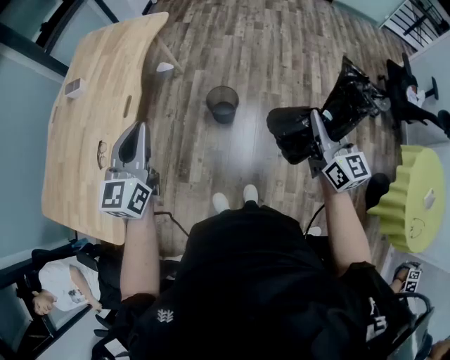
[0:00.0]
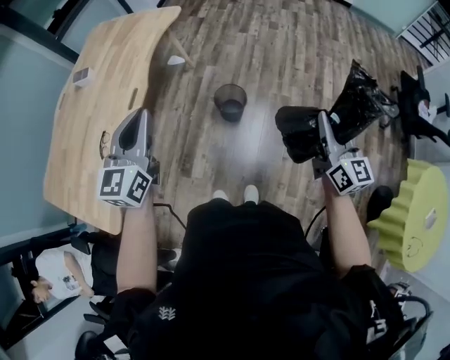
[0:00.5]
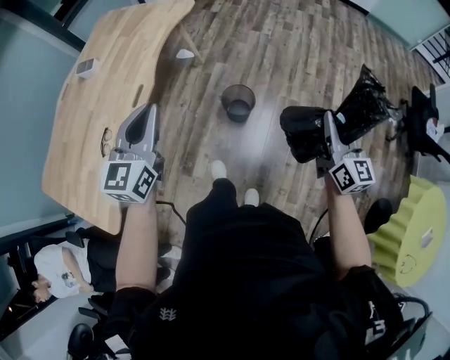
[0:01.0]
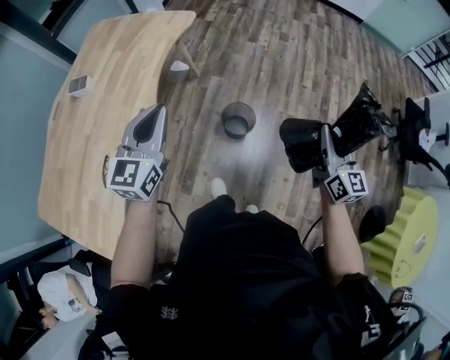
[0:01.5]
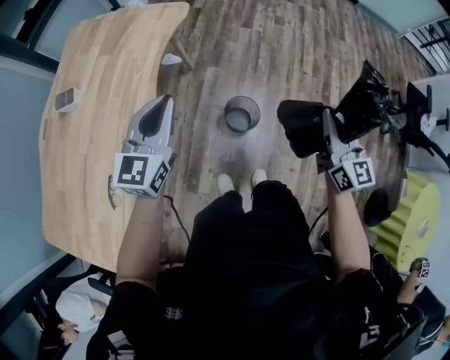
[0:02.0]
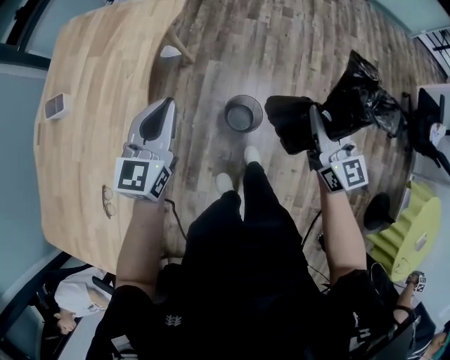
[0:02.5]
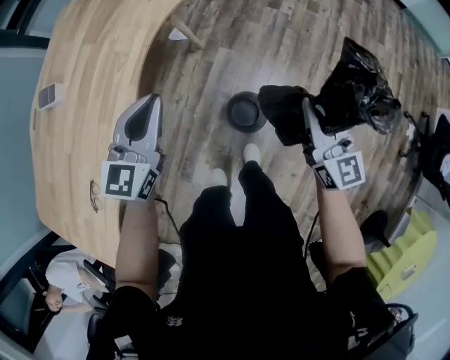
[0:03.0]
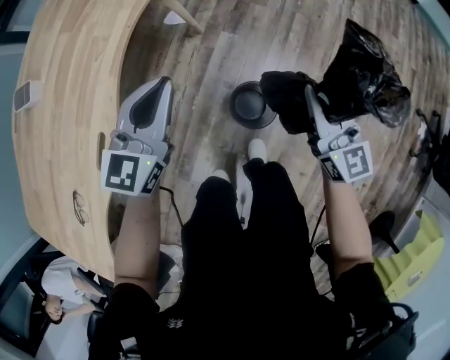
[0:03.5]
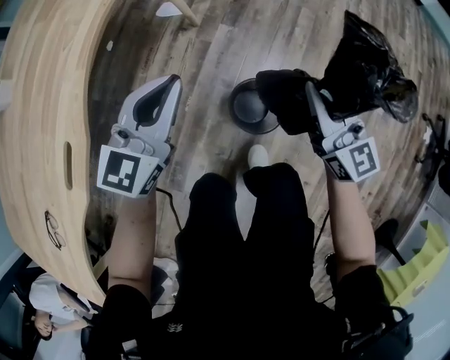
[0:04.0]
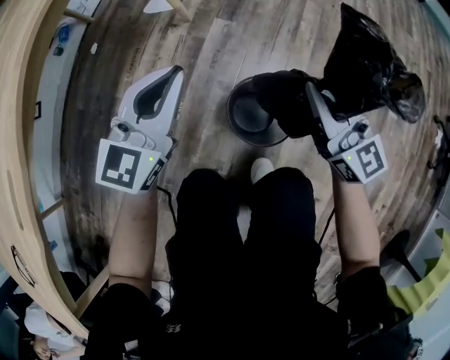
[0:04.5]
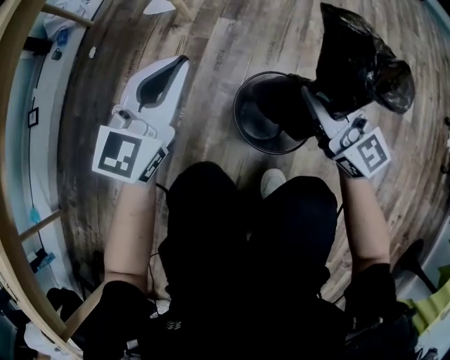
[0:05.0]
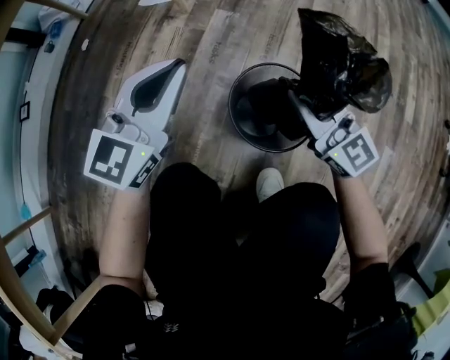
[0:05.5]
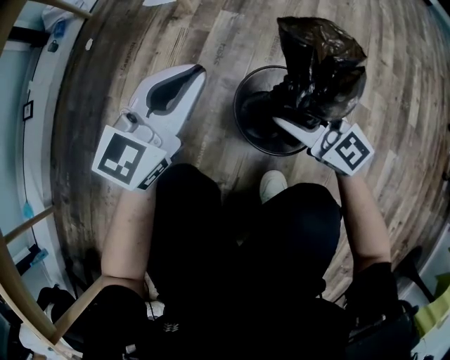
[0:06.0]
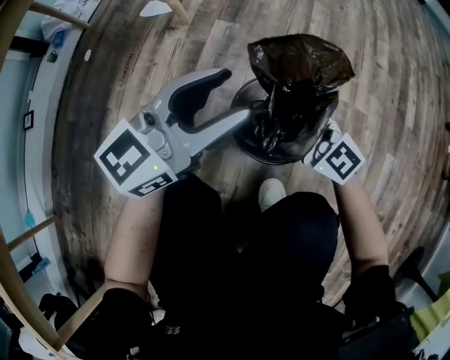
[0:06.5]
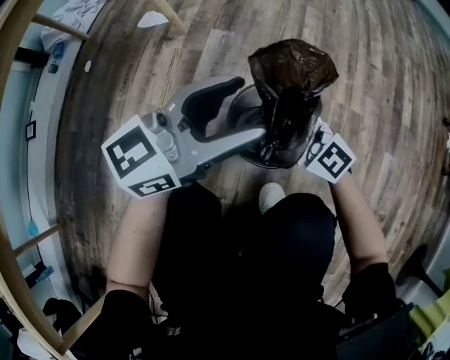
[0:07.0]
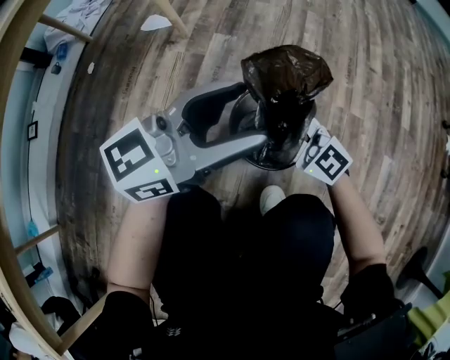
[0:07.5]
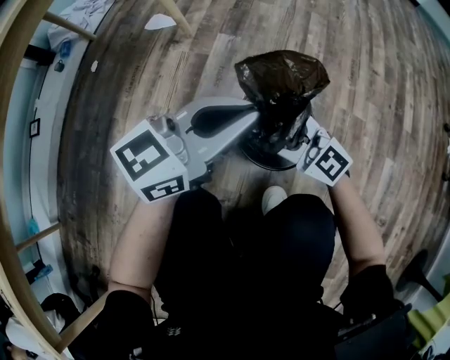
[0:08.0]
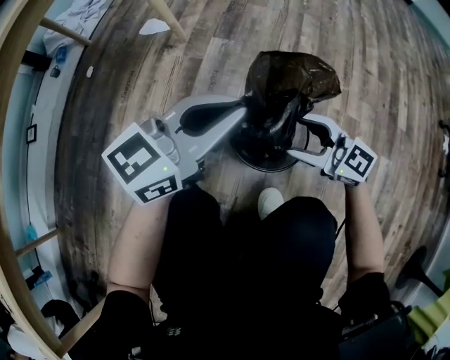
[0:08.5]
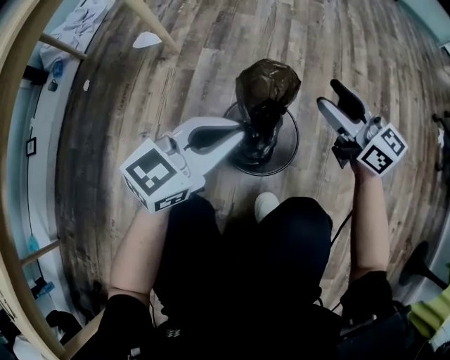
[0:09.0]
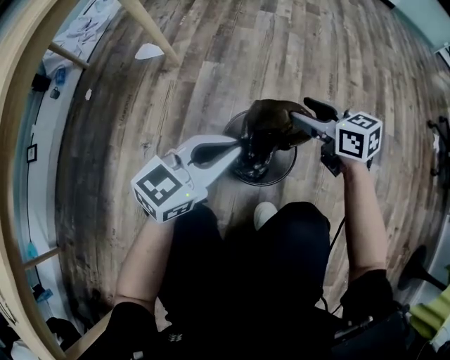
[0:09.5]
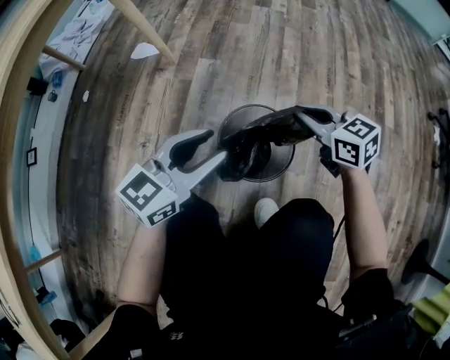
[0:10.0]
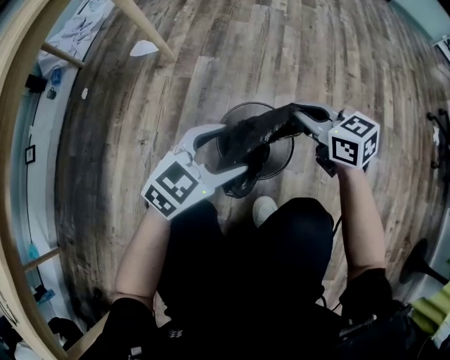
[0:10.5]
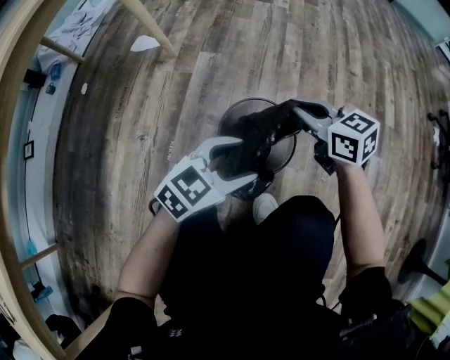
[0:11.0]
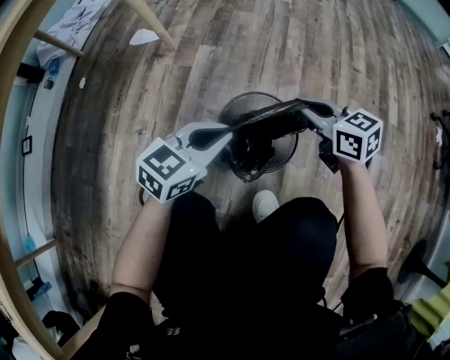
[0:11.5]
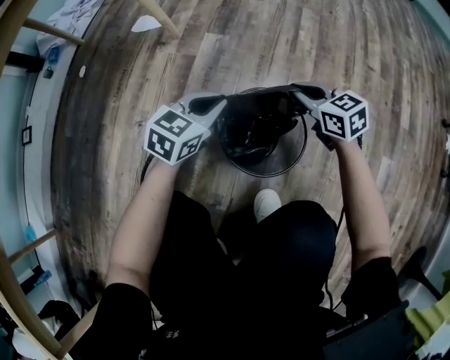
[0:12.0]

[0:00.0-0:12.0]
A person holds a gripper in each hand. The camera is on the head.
0:00.0 to 0:02.0: The left gripper shifts roughly 30 cm forward; the right gripper heads forward and to the left, covering approximately 30 cm.
0:02.0 to 0:04.0: The left gripper goes some 35 cm downward. Meanwhile the right gripper travels downward and forward by some 40 cm, and changes its angle by approximately 20 degrees.
0:04.0 to 0:06.0: Both grippers move downward, some 35 cm. The right gripper turns by about 30 degrees, and opens its fingers.
0:06.0 to 0:08.0: The left gripper shifts by about 10 cm, turns by approximately 30 degrees, and opens, then closes once more.
0:08.0 to 0:10.0: The left gripper opens. Meanwhile the right gripper is displaced to the right and forward by approximately 15 cm, changes its angle by roughly 40 degrees, and closes its fingers.
0:10.0 to 0:12.0: Both grippers move downward and forward, some 15 cm. The left gripper turns by roughly 20 degrees, and closes.

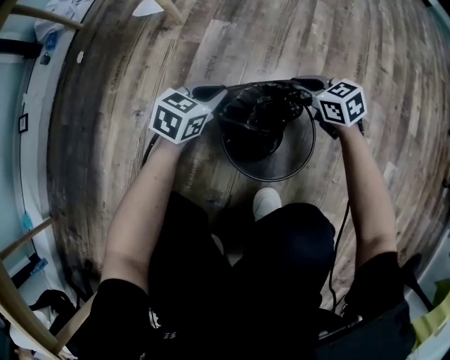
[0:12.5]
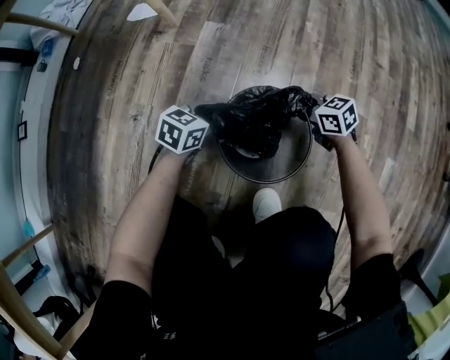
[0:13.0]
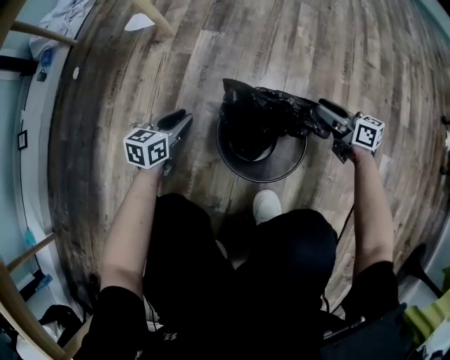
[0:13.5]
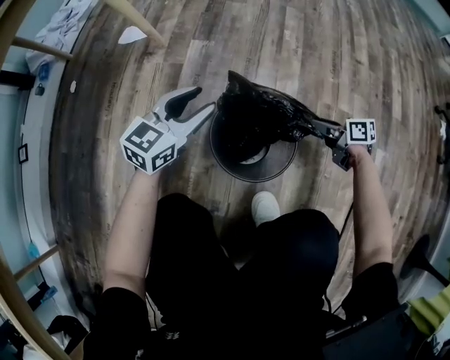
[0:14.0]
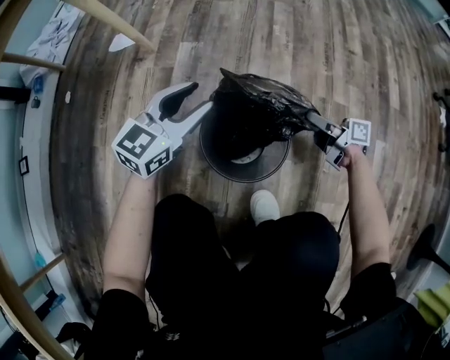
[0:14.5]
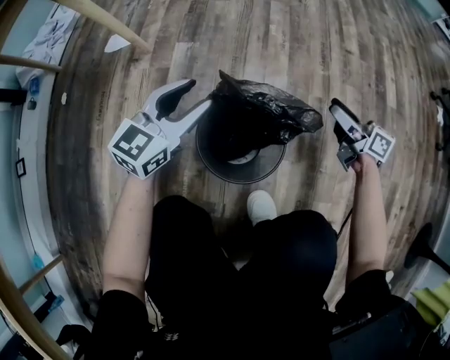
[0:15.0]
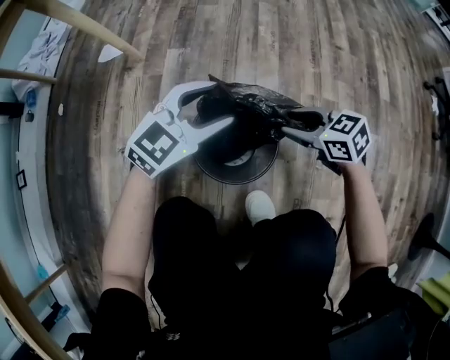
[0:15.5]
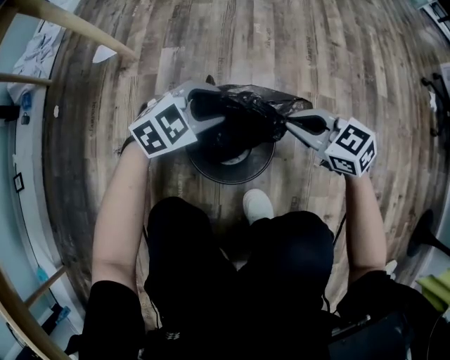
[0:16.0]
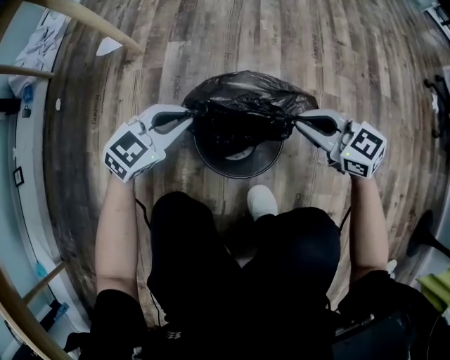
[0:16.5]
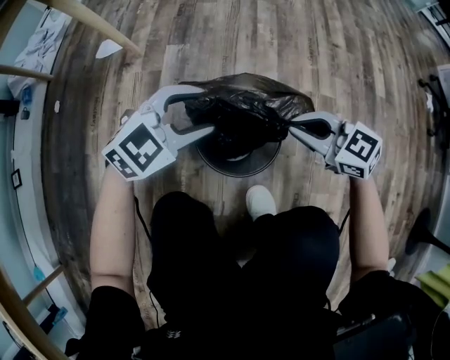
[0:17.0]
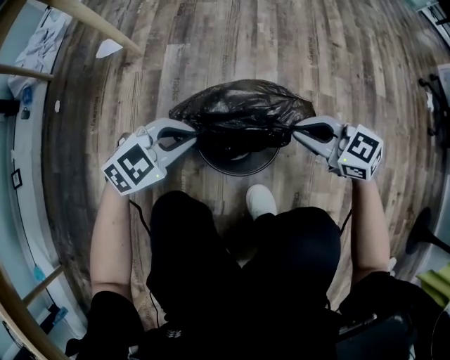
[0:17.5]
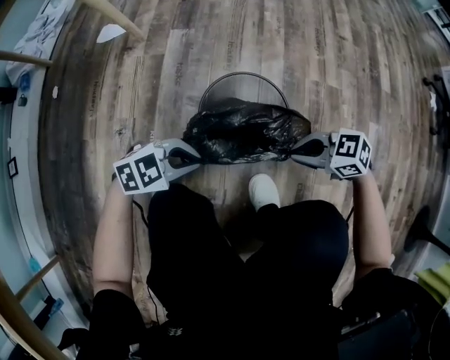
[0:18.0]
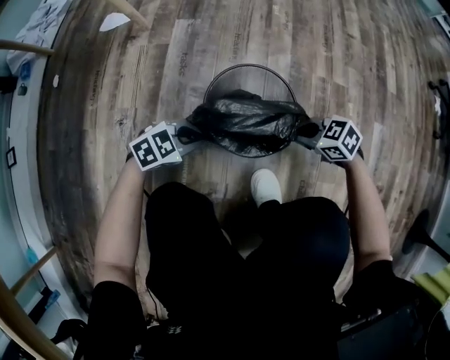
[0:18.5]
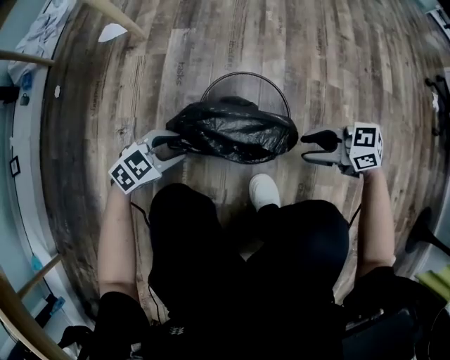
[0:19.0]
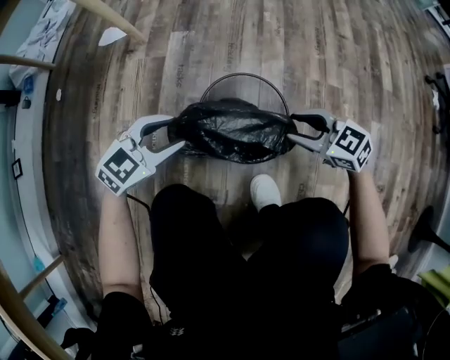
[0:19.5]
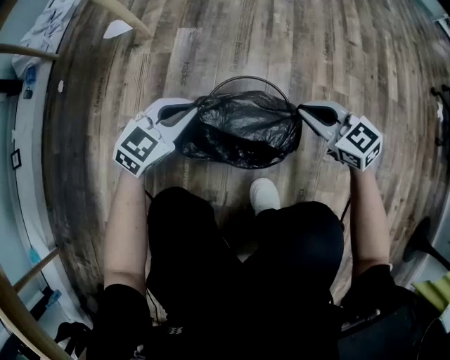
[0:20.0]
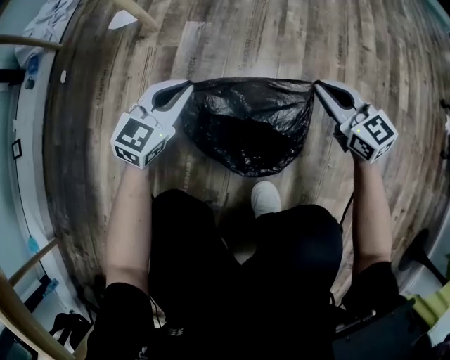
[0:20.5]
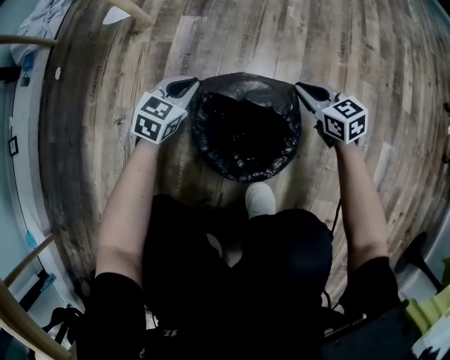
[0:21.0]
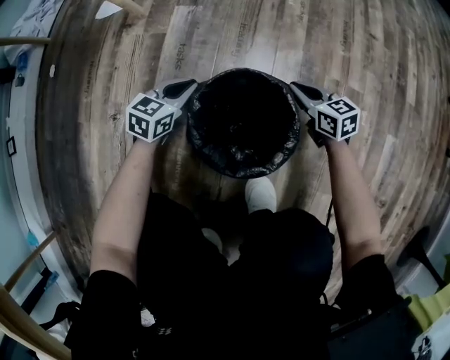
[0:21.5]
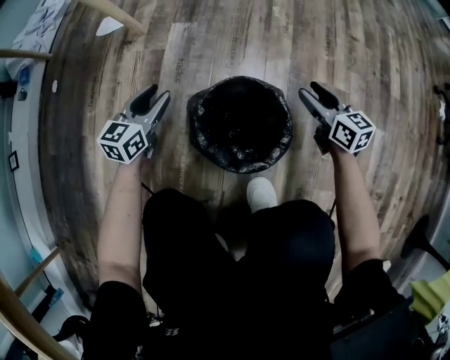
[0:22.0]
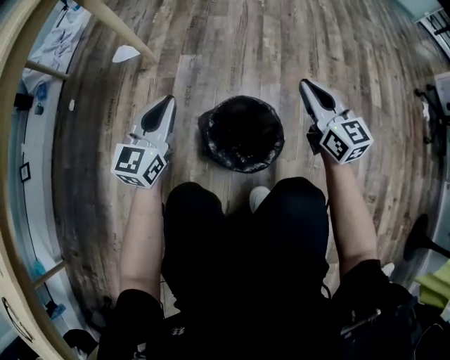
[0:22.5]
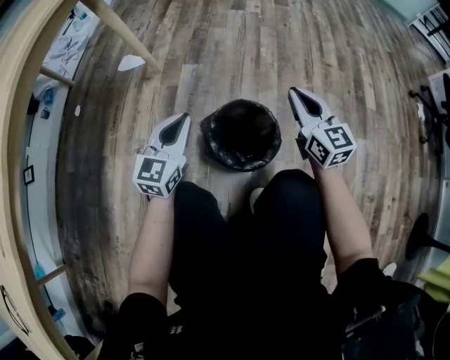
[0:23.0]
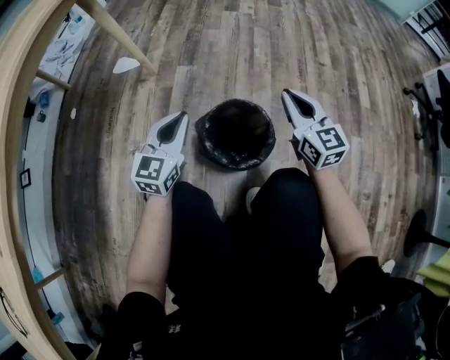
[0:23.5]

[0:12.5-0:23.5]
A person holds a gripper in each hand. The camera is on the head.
0:12.5 to 0:14.5: The right gripper is displaced to the right and backward by some 20 cm, rolls clockwise, seen from behind, by about 50 degrees, and opens up. Meanwhile the left gripper moves upward, roughly 15 cm, turns by about 30 degrees, and opens up.
0:14.5 to 0:16.0: The left gripper moves about 10 cm, and swivels about 40 degrees; the right gripper heads upward, covering roughly 10 cm, twists some 60 degrees counterclockwise, seen from behind, and closes.
0:16.0 to 0:18.0: The left gripper changes place by about 20 cm, and closes. Meanwhile the right gripper moves about 15 cm, and changes its angle by some 30 degrees.
0:18.0 to 0:20.0: The right gripper travels downward and back again, approximately 10 cm each way, rotates roughly 30 degrees, and opens, then closes once more; the left gripper moves roughly 5 cm downward and comes back, rotates some 40 degrees, and opens, then closes once more.
0:20.0 to 0:21.5: Both grippers travel together downward and forward, approximately 15 cm. The left gripper swivels about 30 degrees. Meanwhile the right gripper turns by about 20 degrees.
0:21.5 to 0:23.5: The two grippers go roughly 30 cm upward. The left gripper changes its angle by some 30 degrees, and opens and closes again. Meanwhile the right gripper changes its angle by roughly 40 degrees, and opens, then closes once more.

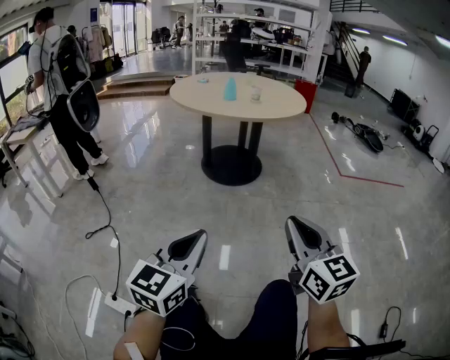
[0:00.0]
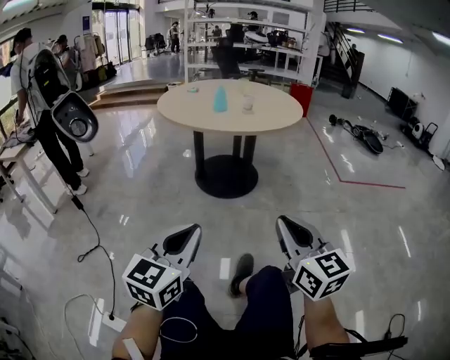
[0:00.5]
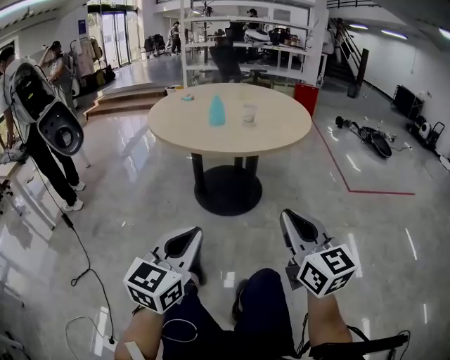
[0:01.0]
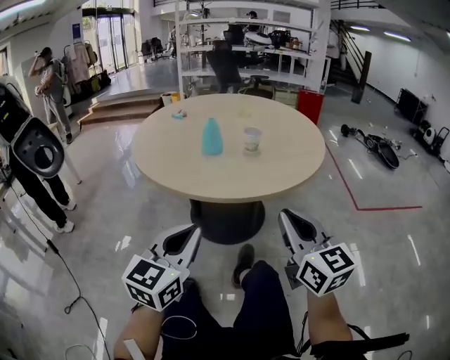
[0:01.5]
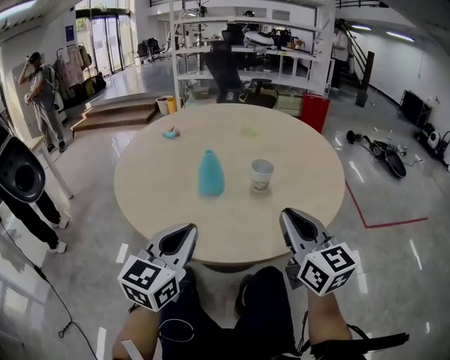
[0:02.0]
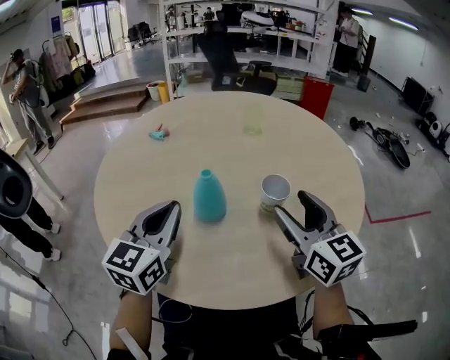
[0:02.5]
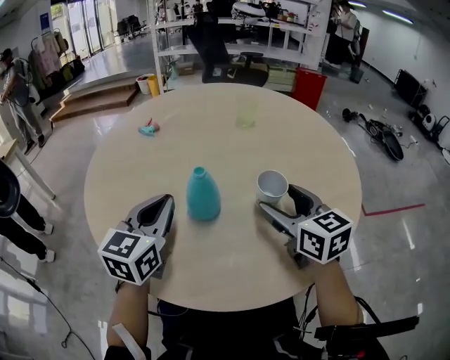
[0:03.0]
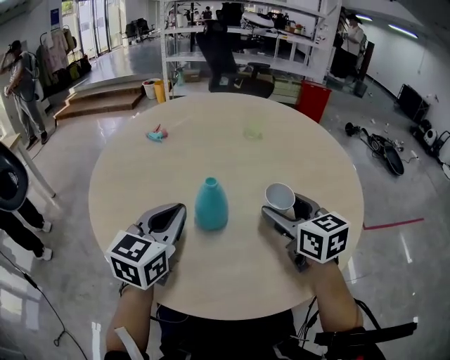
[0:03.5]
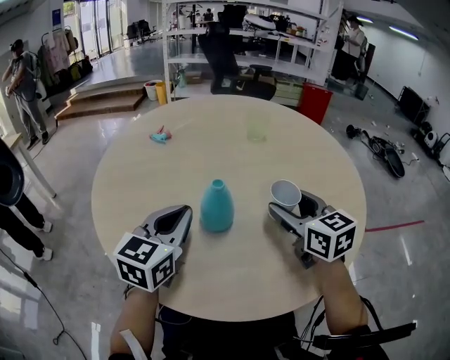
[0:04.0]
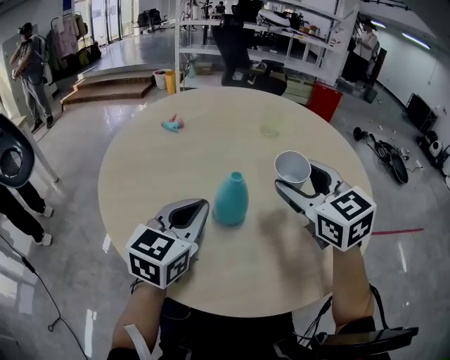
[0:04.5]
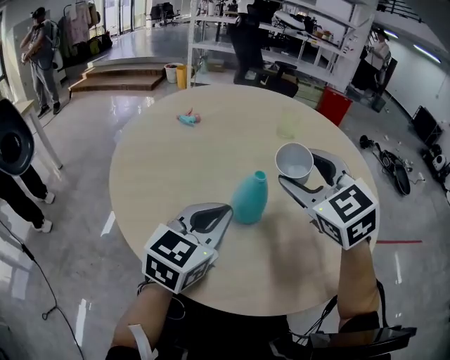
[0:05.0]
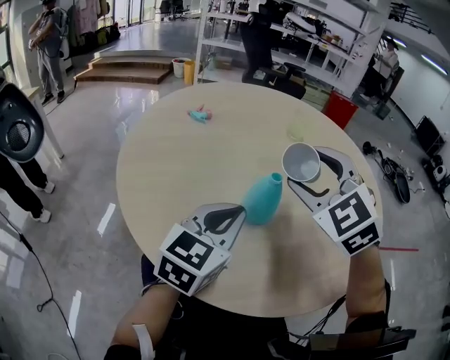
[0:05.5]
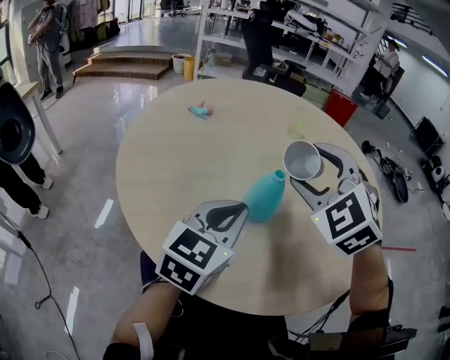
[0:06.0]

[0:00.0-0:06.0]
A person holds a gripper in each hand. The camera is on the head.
0:00.0 to 0:02.0: Both grippers are carried forward, approximately 60 cm.
0:02.0 to 0:04.0: Both grippers move forward, some 20 cm. The right gripper opens up.
0:04.0 to 0:06.0: The right gripper shifts some 15 cm to the left and upward, and rotates around the line of its fingers by some 60 degrees, counterclockwise from behind.
